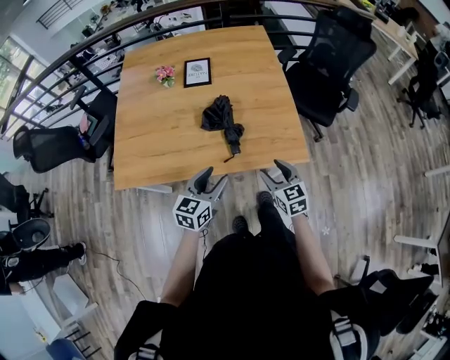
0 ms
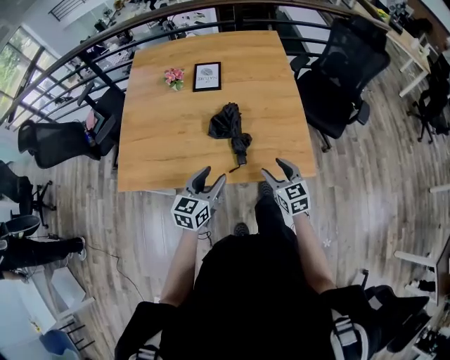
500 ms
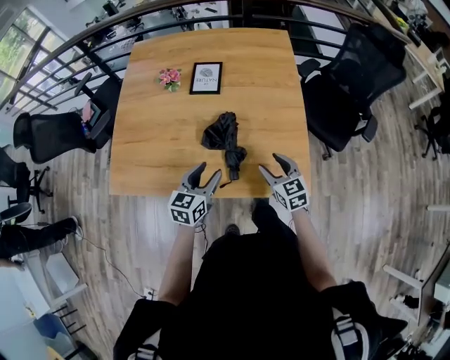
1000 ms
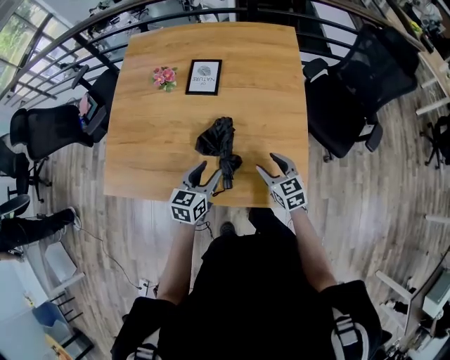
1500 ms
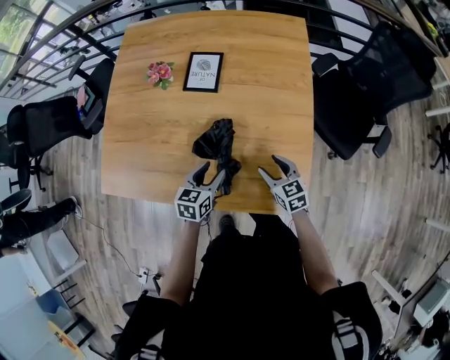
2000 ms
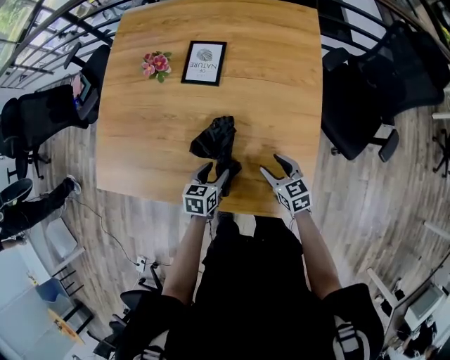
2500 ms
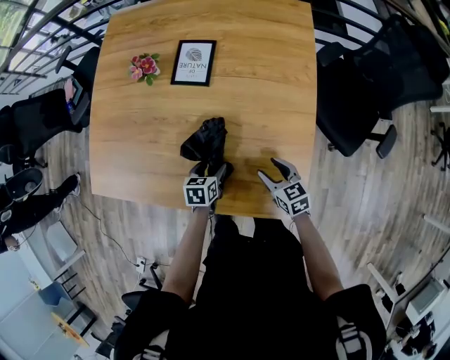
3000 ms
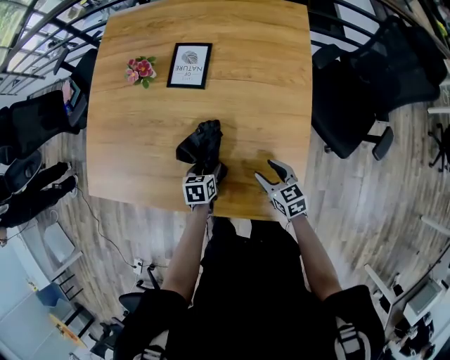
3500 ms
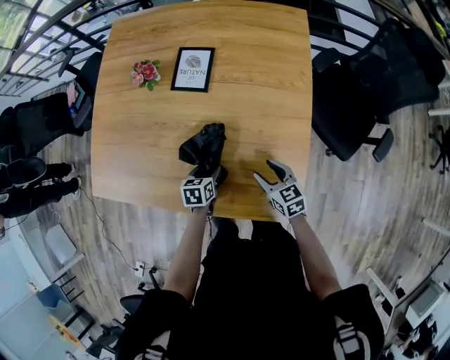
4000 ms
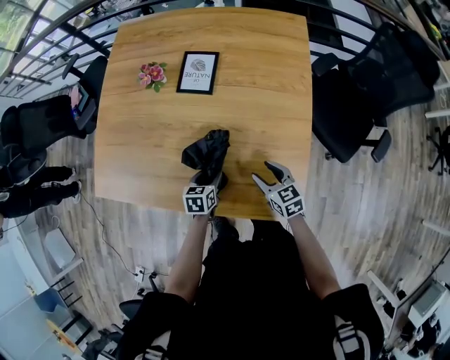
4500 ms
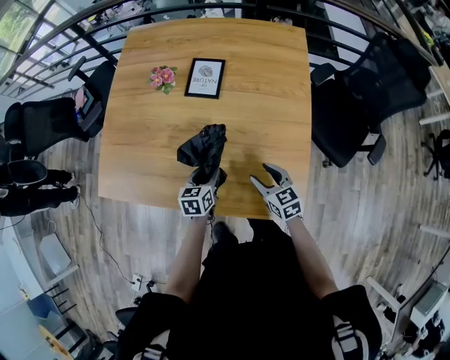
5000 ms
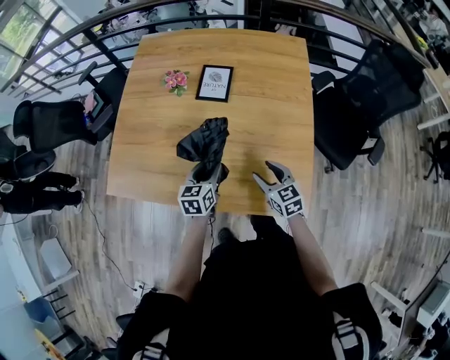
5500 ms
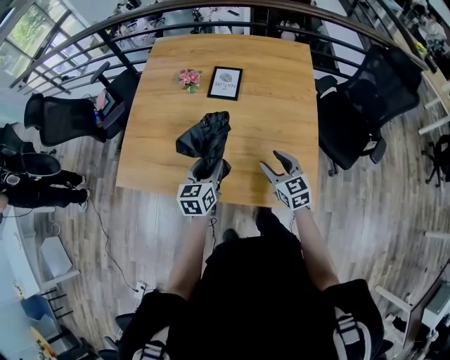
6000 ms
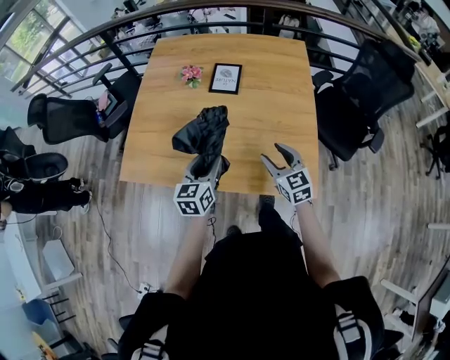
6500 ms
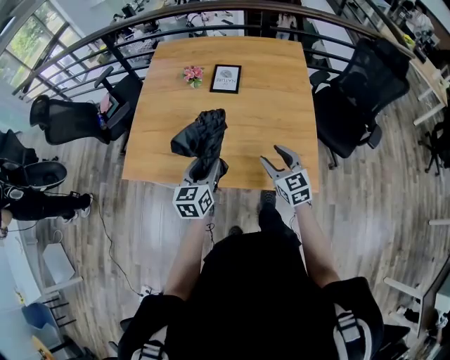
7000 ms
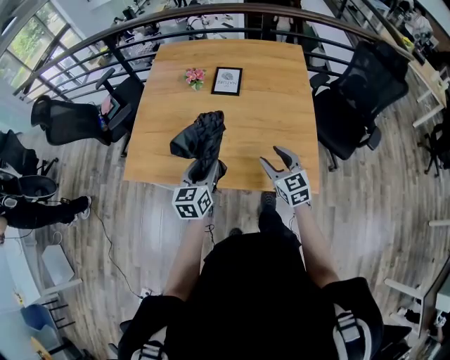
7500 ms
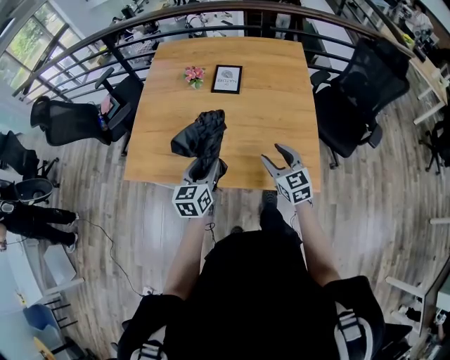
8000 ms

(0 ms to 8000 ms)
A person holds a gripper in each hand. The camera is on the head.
0 ms - 2000 ms: The left gripper is displaced forward and downward by approximately 25 cm, and turns by about 20 degrees. The right gripper travels forward by about 25 cm, and changes its angle by approximately 20 degrees.
2000 ms - 4000 ms: The left gripper shifts approximately 10 cm downward, and swivels approximately 20 degrees.
4000 ms - 6000 ms: The grippers both shift upward and to the left by about 20 cm. The left gripper tips its fingers upward by some 30 degrees.
6000 ms - 8000 ms: Both grippers travel together backward, some 5 cm.

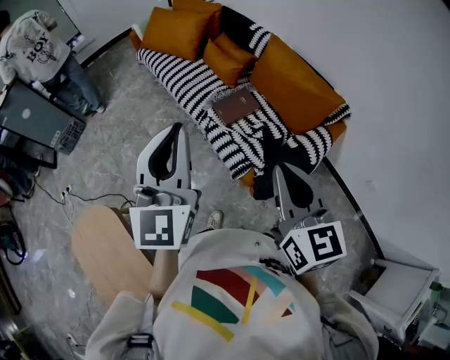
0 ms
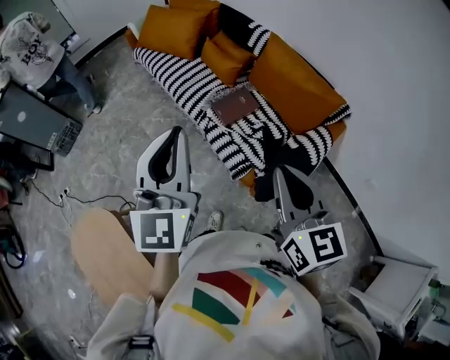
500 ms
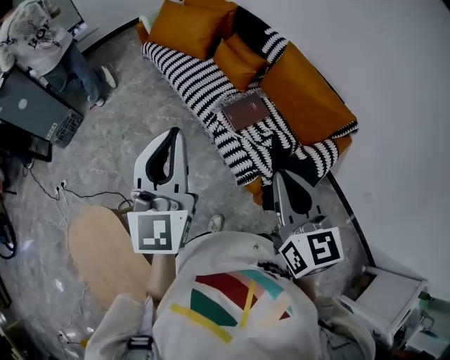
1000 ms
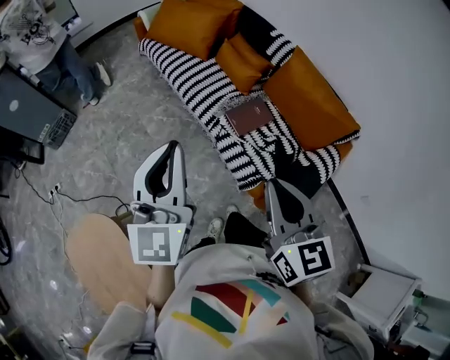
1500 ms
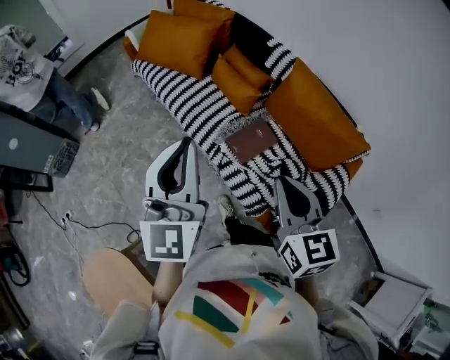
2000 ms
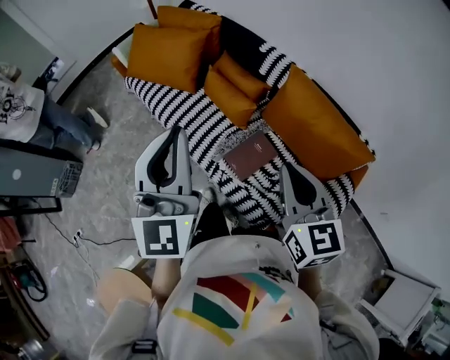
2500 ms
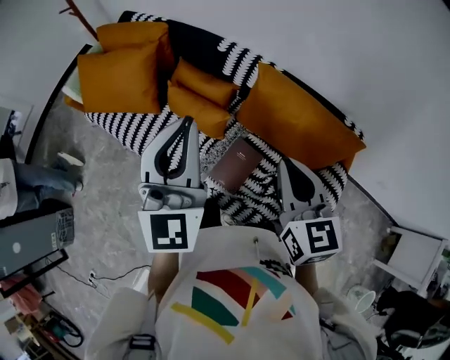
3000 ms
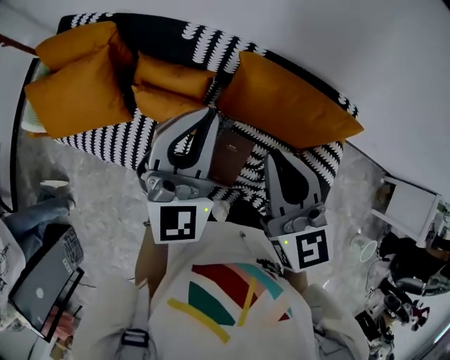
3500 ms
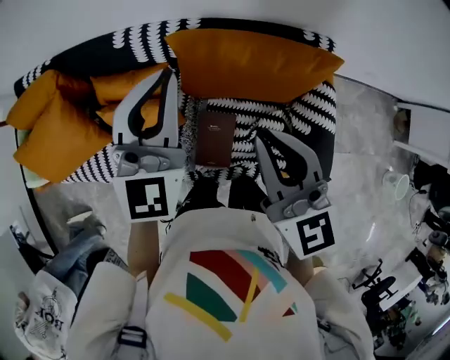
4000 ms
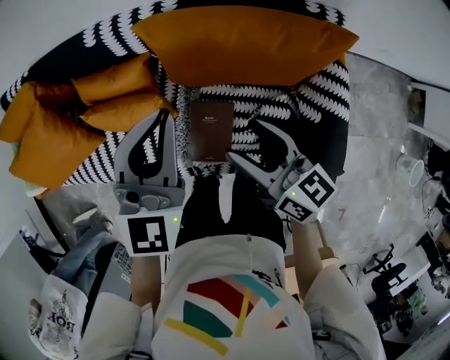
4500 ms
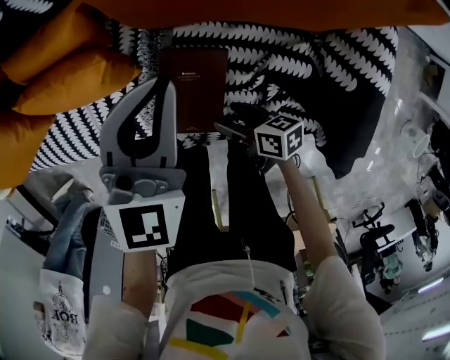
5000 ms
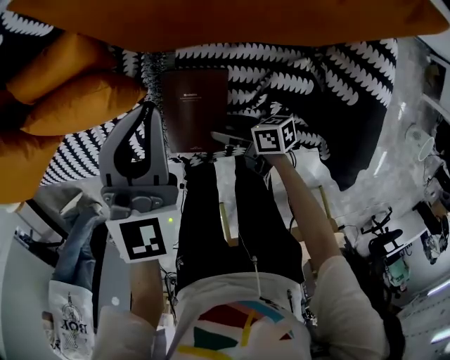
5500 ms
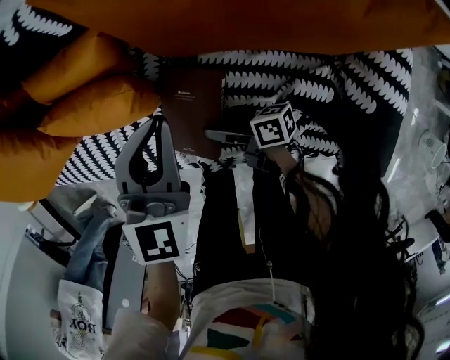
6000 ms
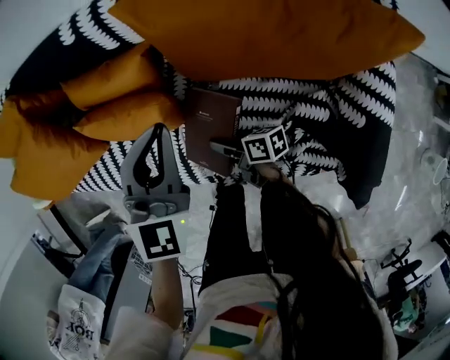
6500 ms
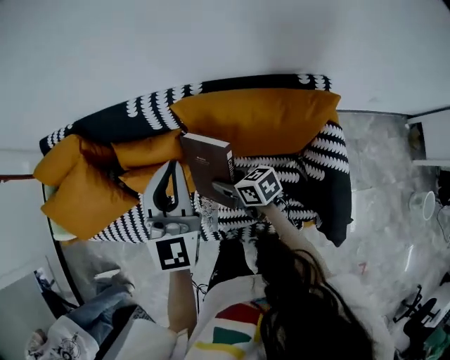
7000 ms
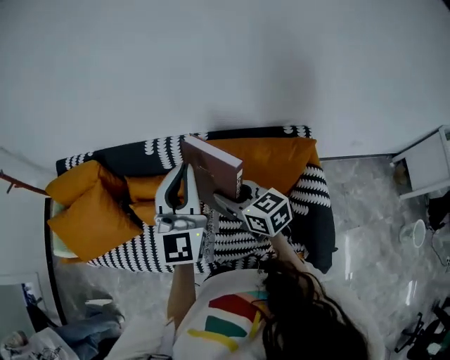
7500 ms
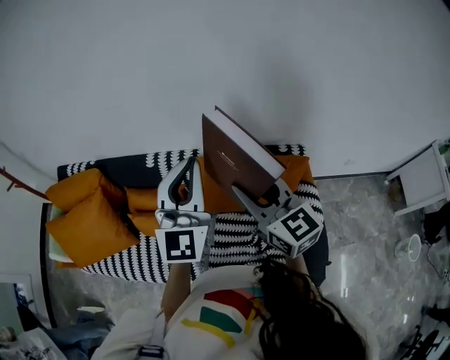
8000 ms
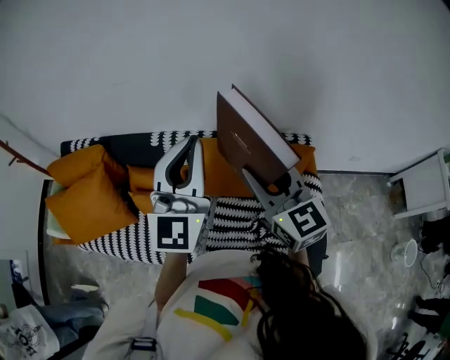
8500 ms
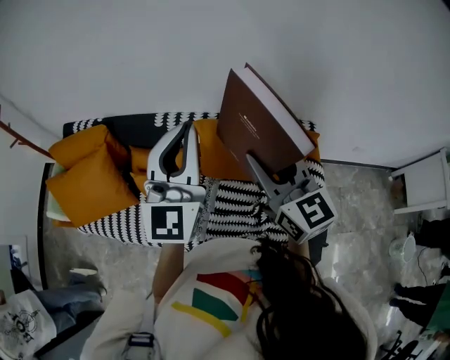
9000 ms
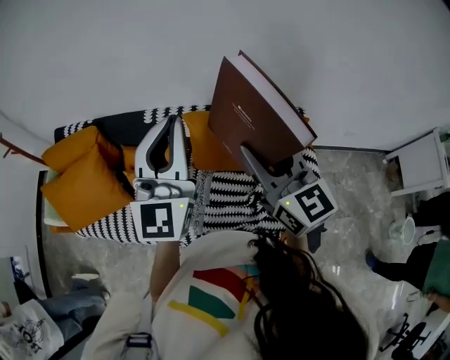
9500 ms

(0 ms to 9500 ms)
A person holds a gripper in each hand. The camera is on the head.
0 ms - 2000 ms: The grippers both shift forward by about 25 cm.
2000 ms - 4000 ms: The left gripper shifts by roughly 50 cm, and turns by roughly 60 degrees. Meanwhile the right gripper shifts by about 30 cm, and rotates about 40 degrees.
4000 ms - 5500 ms: The right gripper shifts about 60 cm downward, rotates around the line of its fingers by approximately 70 degrees, clockwise from behind, and opens up. Meanwhile the left gripper travels downward by some 35 cm, and swivels some 30 degrees.
5500 ms - 7500 ms: Both grippers travel together upward, approximately 40 cm. The left gripper points its fingers about 30 degrees further upward; the right gripper rolls counterclockwise, seen from behind, by about 60 degrees, and closes.
7500 ms - 9500 ms: The right gripper heads upward and backward, covering some 20 cm, and rotates roughly 30 degrees. Meanwhile the left gripper moves upward and backward, roughly 10 cm.

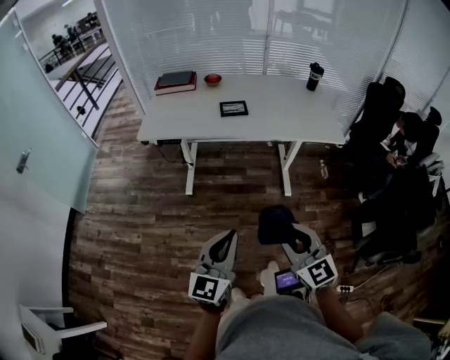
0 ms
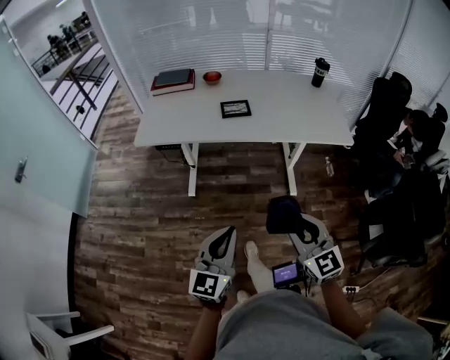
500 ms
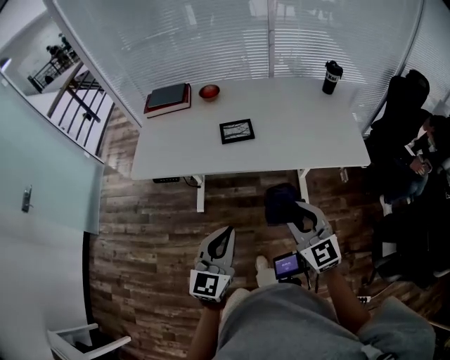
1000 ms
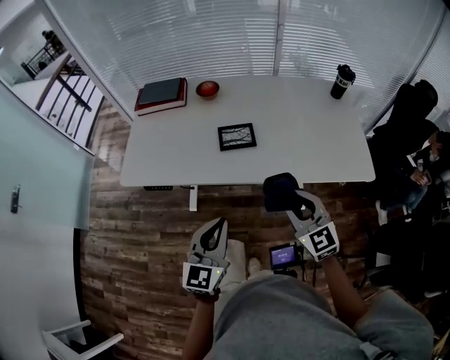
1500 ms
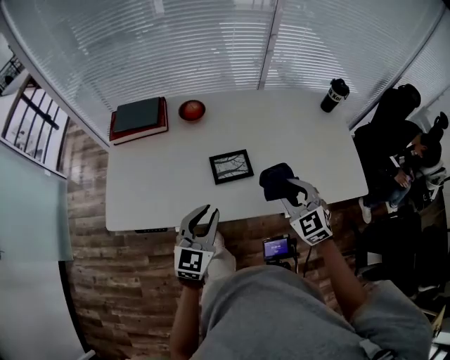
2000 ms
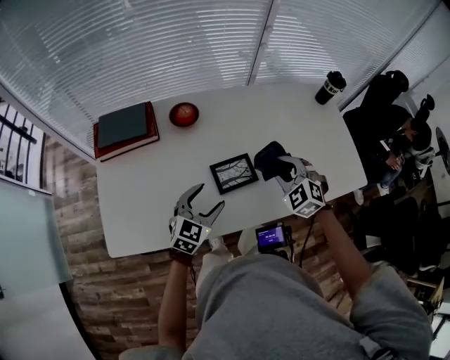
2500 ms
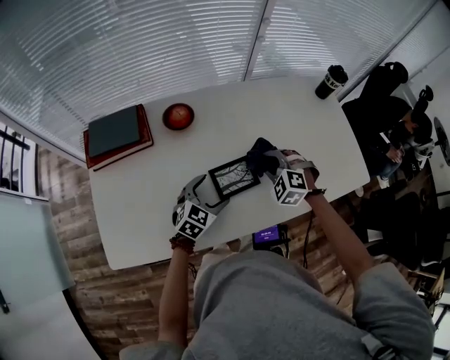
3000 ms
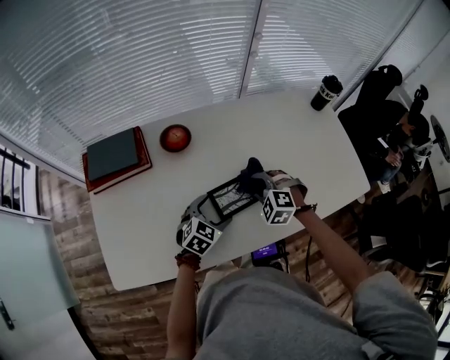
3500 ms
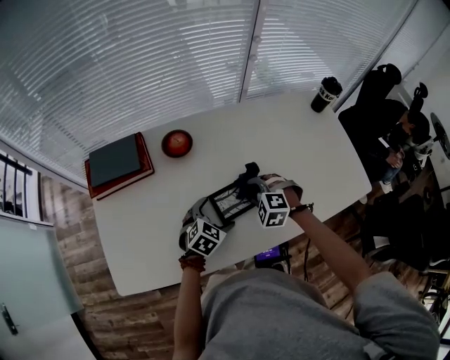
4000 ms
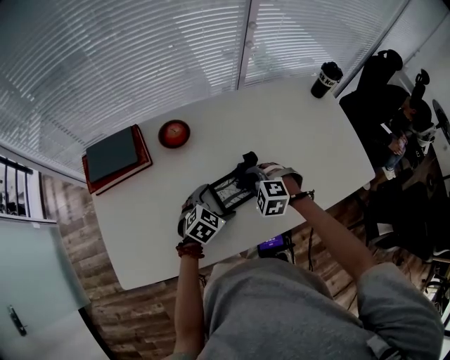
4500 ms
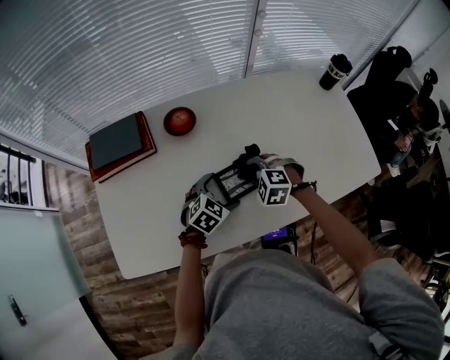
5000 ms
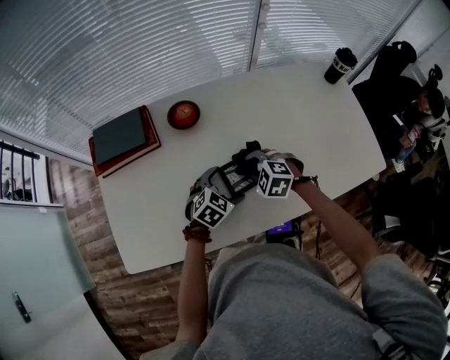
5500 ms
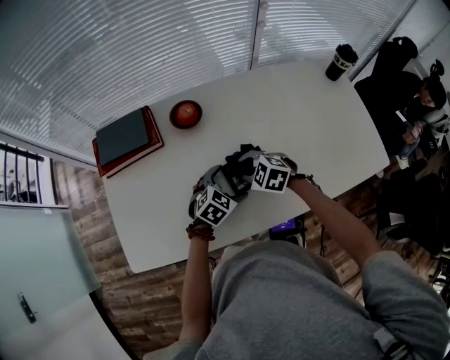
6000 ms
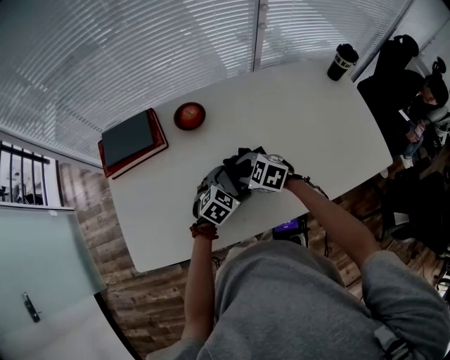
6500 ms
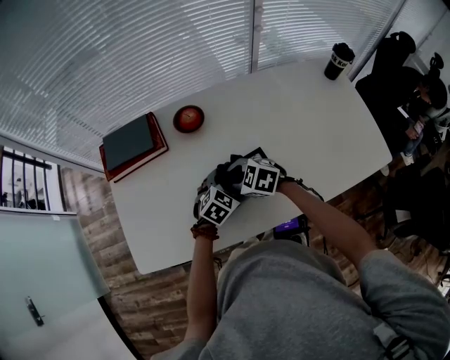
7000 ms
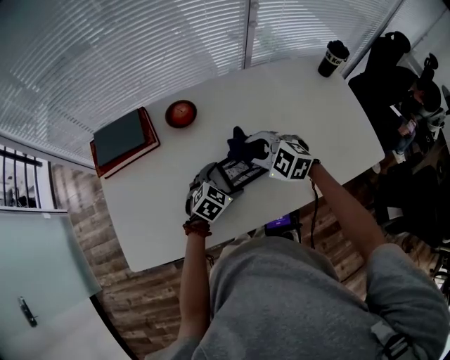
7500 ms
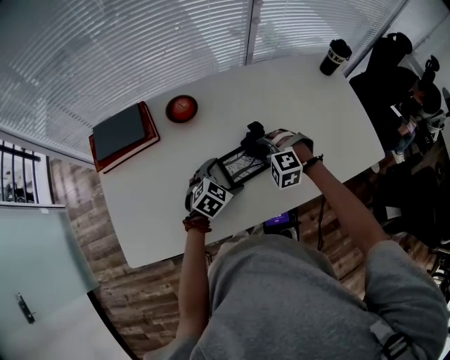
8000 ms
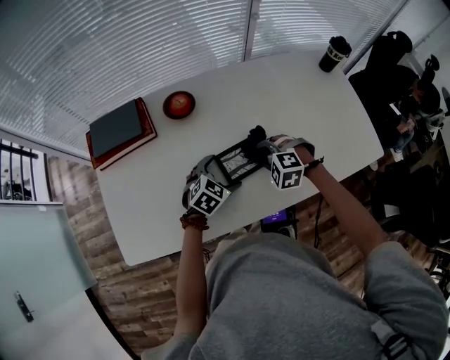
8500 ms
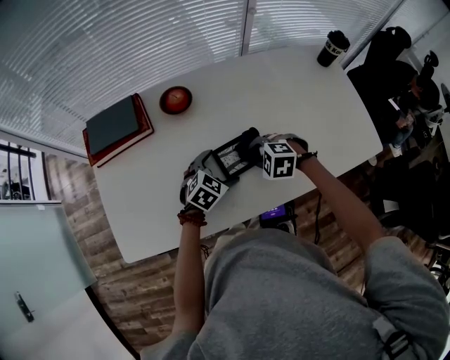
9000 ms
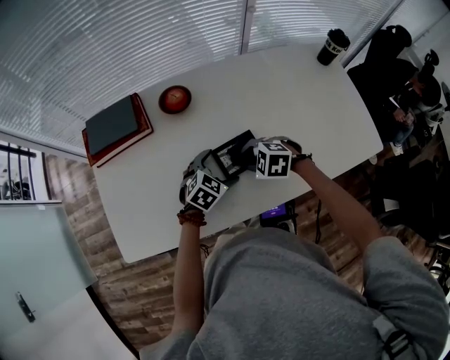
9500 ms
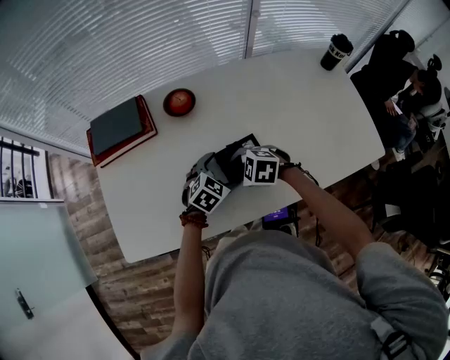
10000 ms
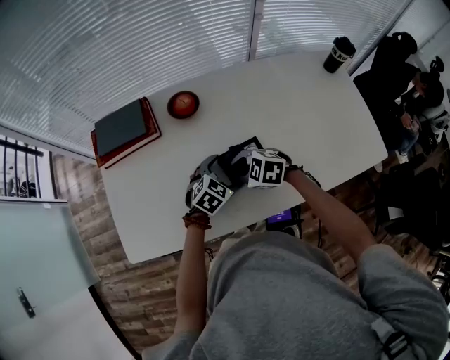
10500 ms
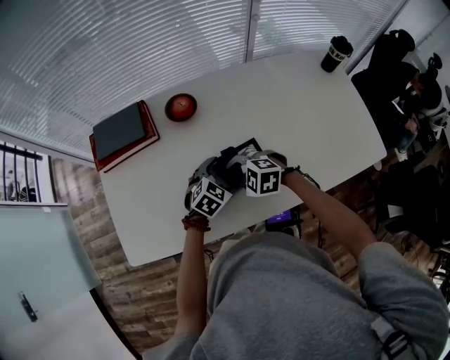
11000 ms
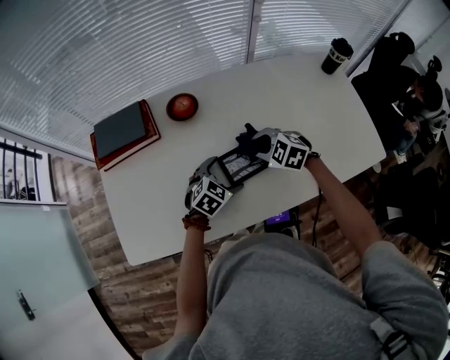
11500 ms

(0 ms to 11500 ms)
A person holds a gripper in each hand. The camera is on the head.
0 ms - 2000 ms: The pair of grippers is taken forward, some 60 cm. The right gripper rotates some 30 degrees.
2000 ms - 4000 ms: The left gripper moves downward and forward, some 25 cm, angles its fingers downward, by approximately 30 degrees, and opens up. The right gripper is displaced downward, to the left and forward by some 25 cm, and swivels about 40 degrees.
4000 ms - 6000 ms: The right gripper heads to the left, covering approximately 10 cm, and turns by about 30 degrees.
6000 ms - 7500 ms: The right gripper shifts approximately 10 cm upward.
7500 ms - 9500 ms: The right gripper moves downward and backward, roughly 10 cm, and turns by some 20 degrees.
9500 ms - 11500 ms: The right gripper moves some 5 cm.
